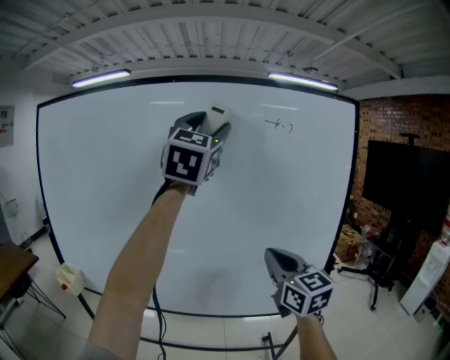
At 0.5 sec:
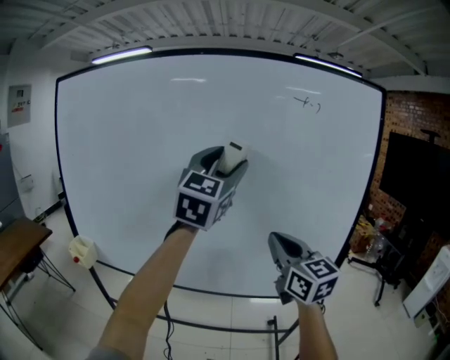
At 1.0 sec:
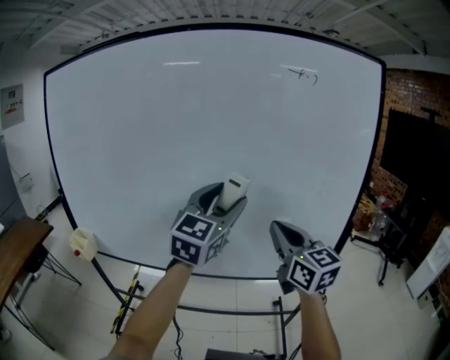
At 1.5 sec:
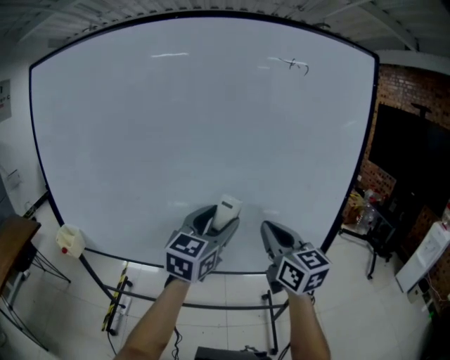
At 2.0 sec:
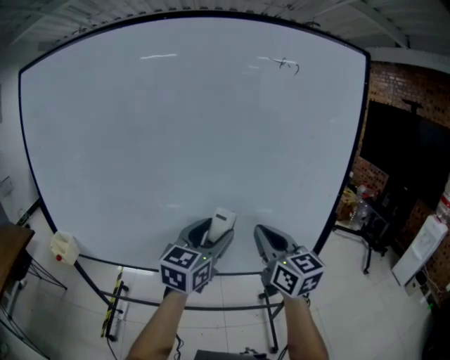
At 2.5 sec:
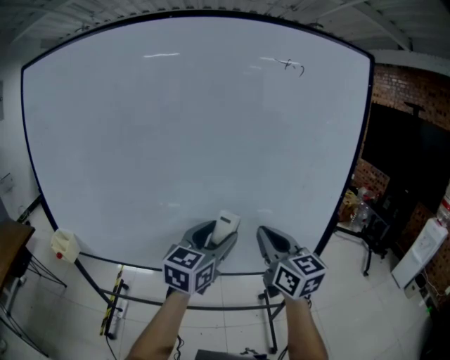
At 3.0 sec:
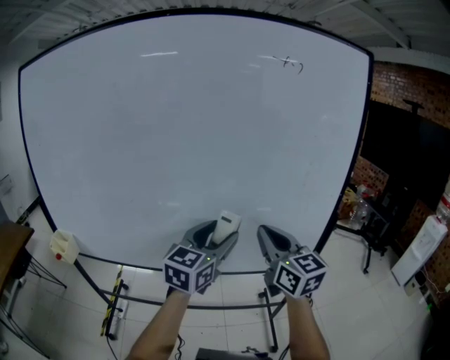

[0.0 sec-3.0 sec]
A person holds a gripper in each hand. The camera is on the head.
0.0 sec to 1.5 sec: The right gripper goes approximately 5 cm downward, while the left gripper moves downward, about 35 cm, and swivels roughly 30 degrees.
1.5 sec to 3.0 sec: The grippers make only small movements.

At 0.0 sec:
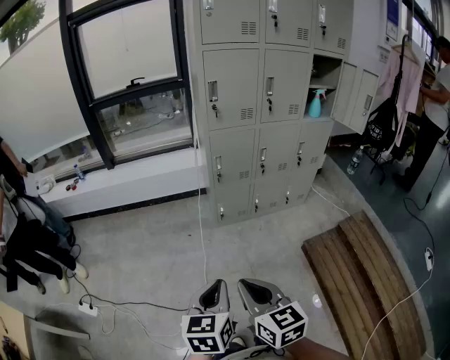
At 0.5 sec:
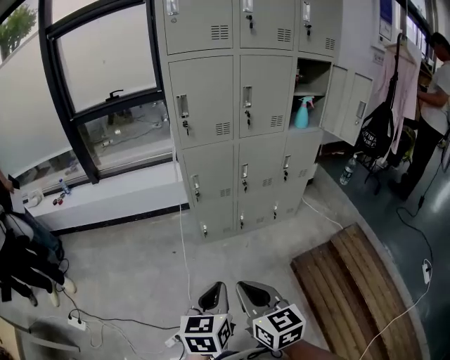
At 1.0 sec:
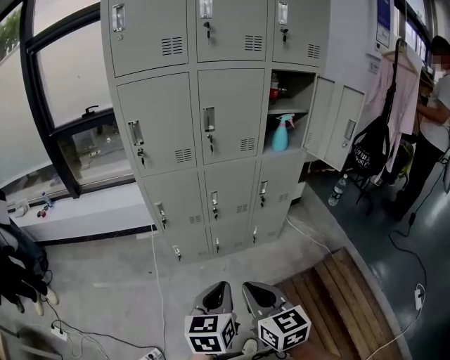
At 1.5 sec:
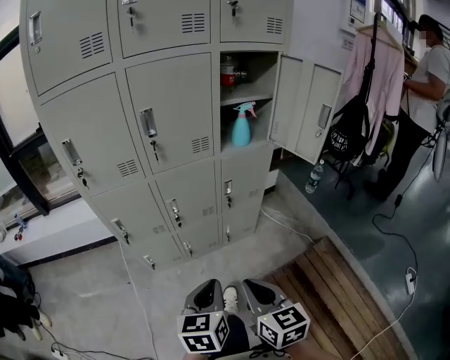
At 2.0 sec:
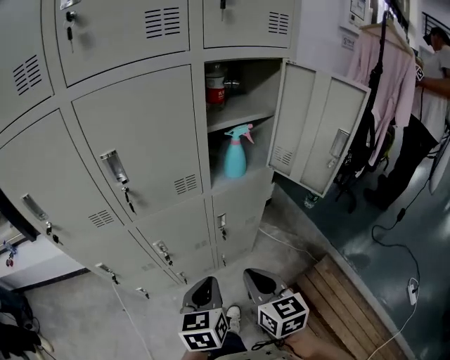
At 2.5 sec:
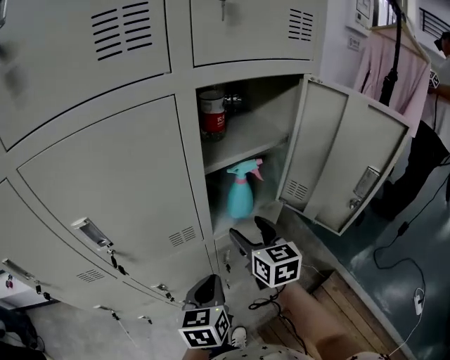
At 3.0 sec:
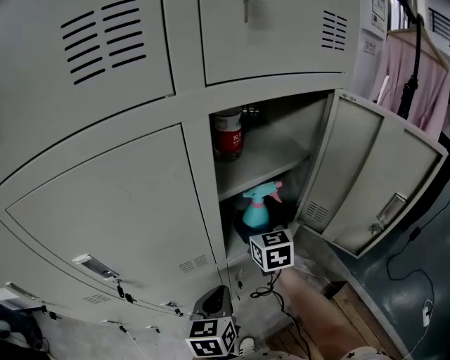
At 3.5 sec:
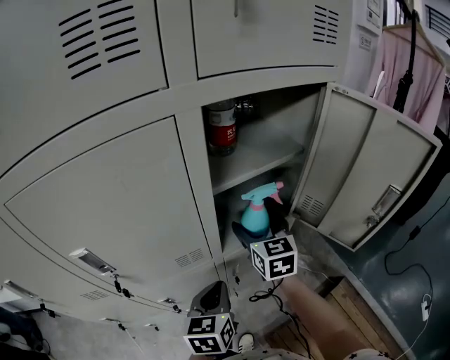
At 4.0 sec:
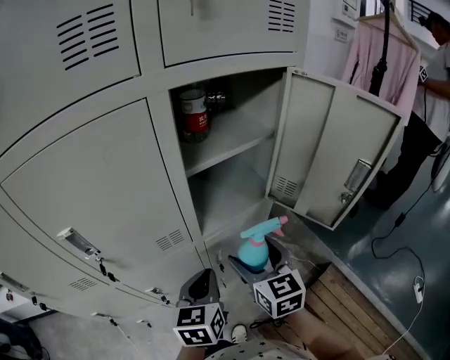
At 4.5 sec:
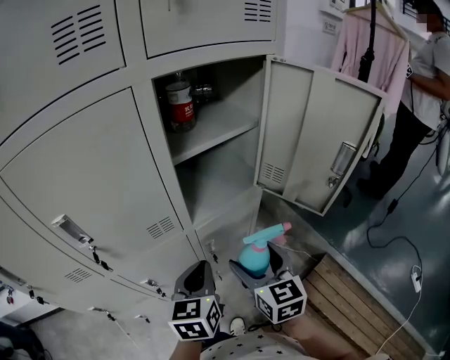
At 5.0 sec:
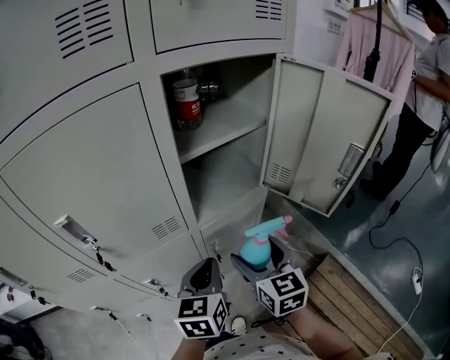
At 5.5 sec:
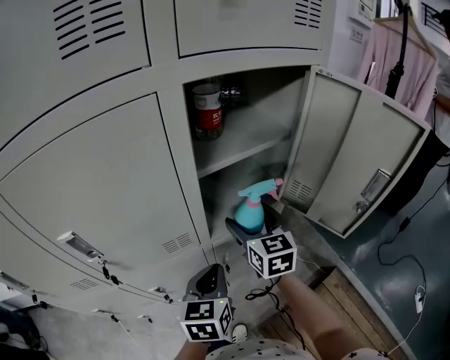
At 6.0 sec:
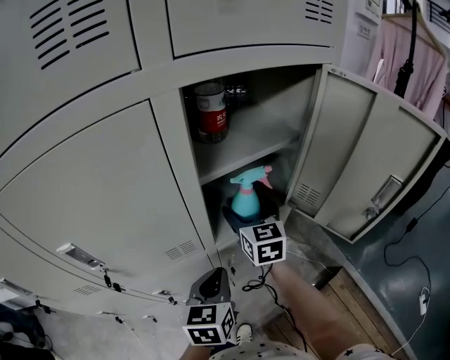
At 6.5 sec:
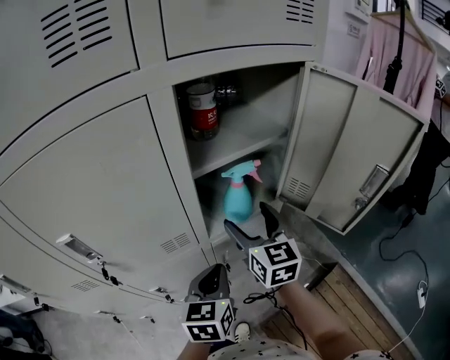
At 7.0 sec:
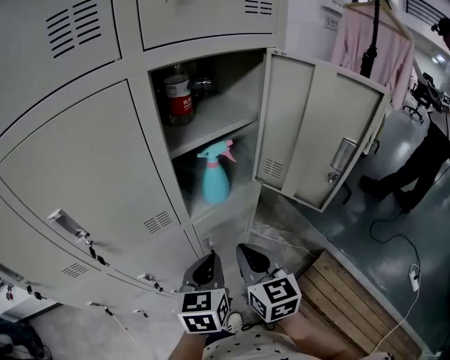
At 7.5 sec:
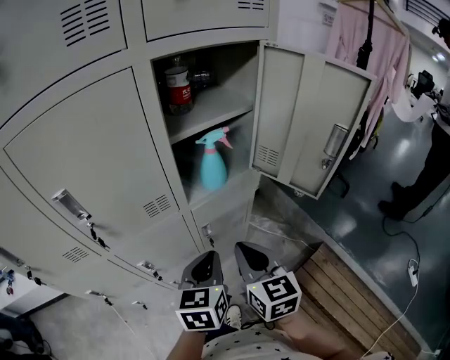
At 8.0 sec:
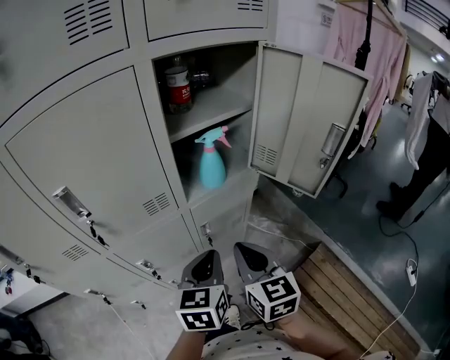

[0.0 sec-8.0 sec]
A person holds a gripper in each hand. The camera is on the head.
0.0 sec to 2.0 sec: Both grippers are carried forward and to the right, roughly 70 cm.
2.0 sec to 4.0 sec: The two grippers go some 20 cm forward. The right gripper opens its fingers.
4.0 sec to 6.0 sec: The right gripper heads forward, covering some 20 cm.
6.0 sec to 8.0 sec: The left gripper travels backward by approximately 10 cm. Meanwhile the right gripper shifts about 30 cm backward, and closes its fingers.

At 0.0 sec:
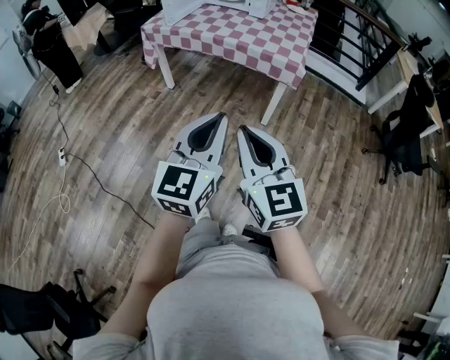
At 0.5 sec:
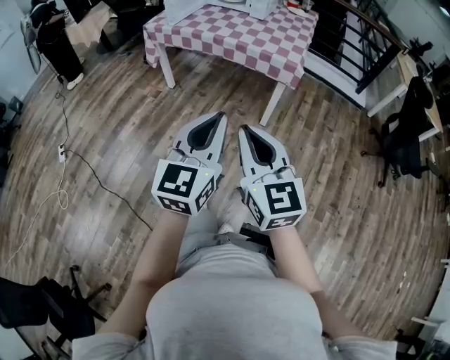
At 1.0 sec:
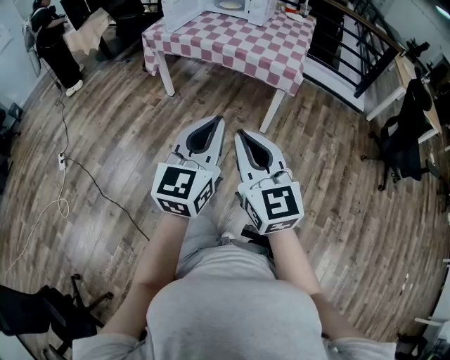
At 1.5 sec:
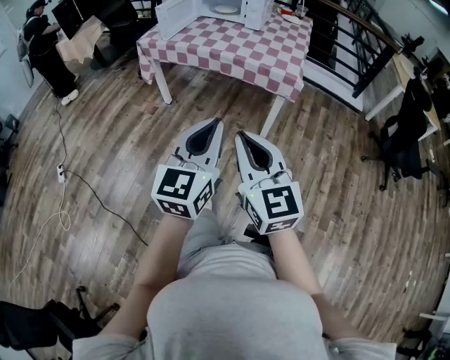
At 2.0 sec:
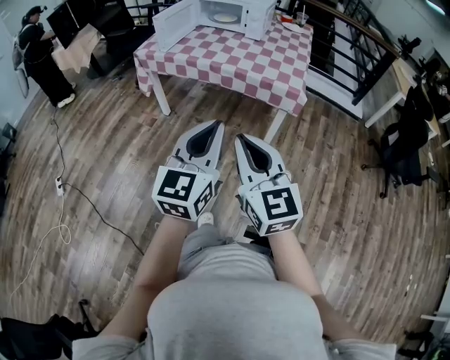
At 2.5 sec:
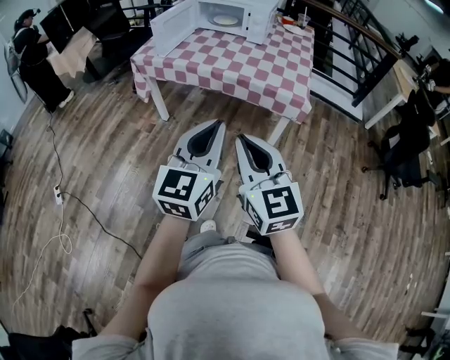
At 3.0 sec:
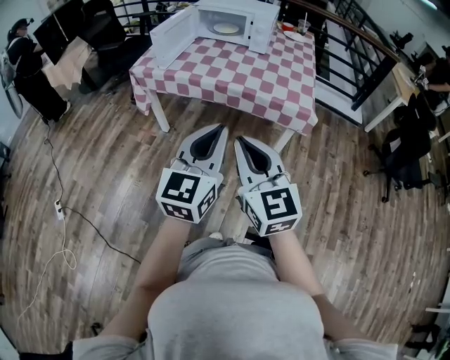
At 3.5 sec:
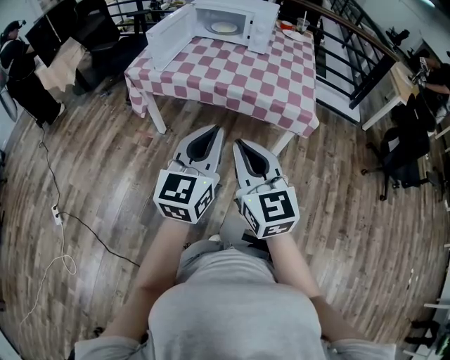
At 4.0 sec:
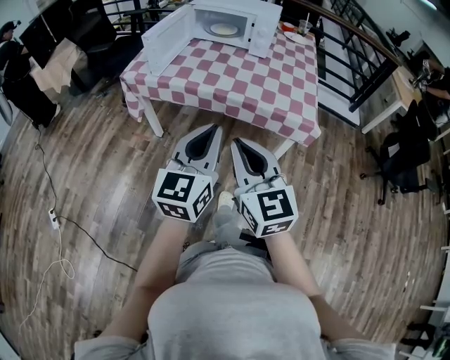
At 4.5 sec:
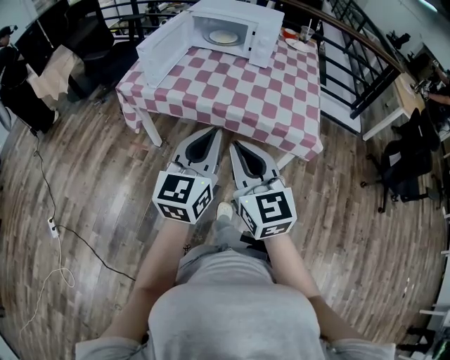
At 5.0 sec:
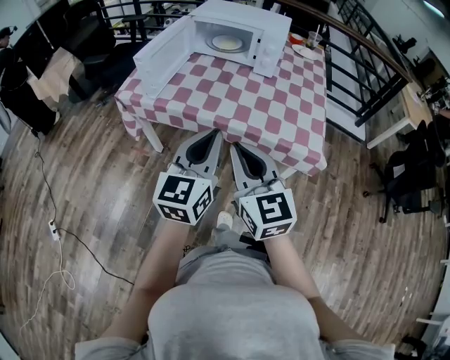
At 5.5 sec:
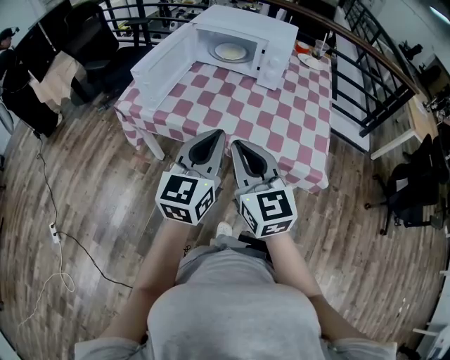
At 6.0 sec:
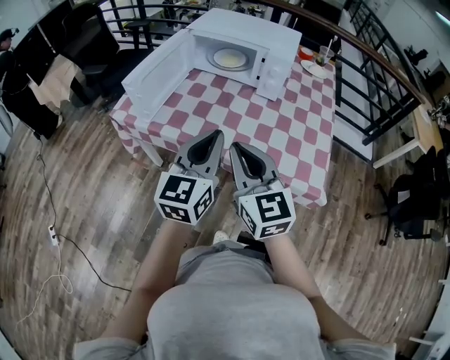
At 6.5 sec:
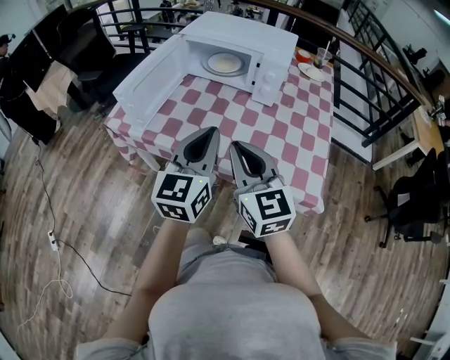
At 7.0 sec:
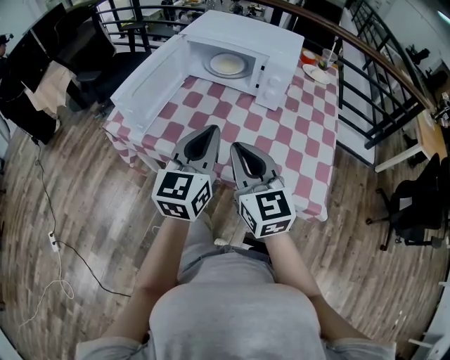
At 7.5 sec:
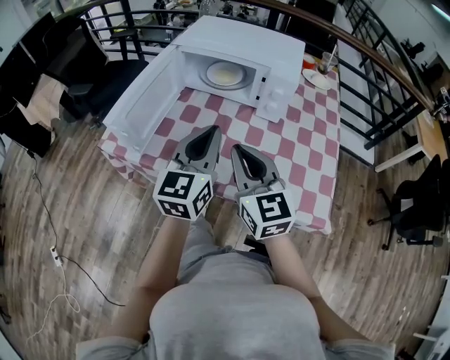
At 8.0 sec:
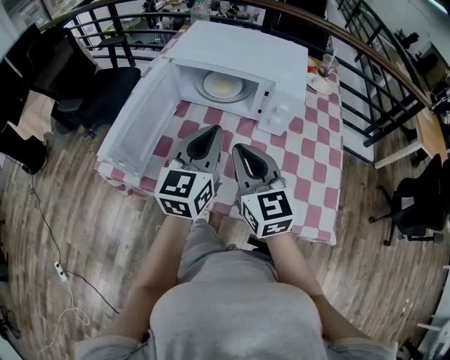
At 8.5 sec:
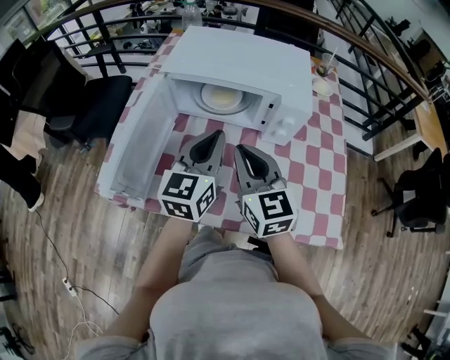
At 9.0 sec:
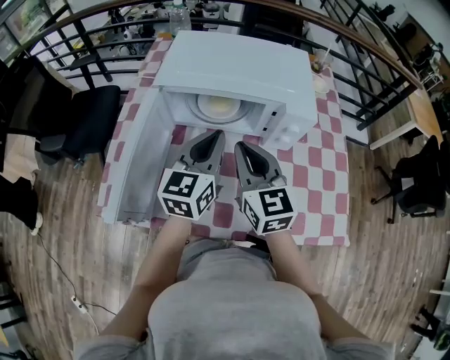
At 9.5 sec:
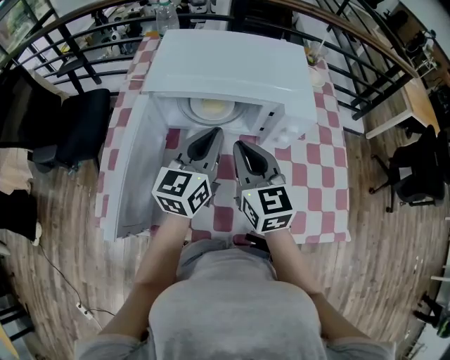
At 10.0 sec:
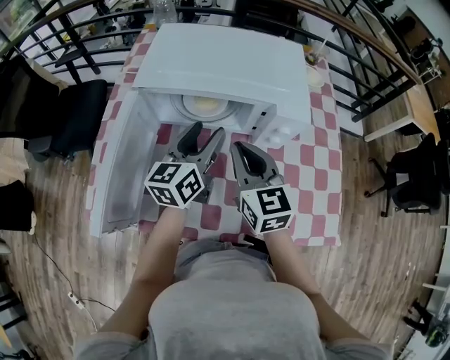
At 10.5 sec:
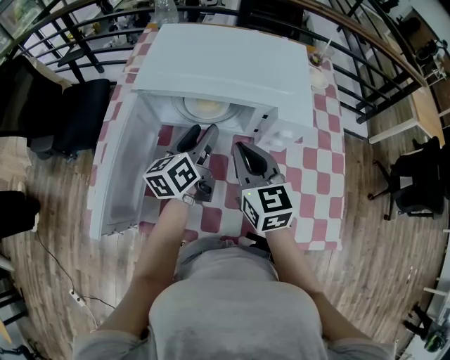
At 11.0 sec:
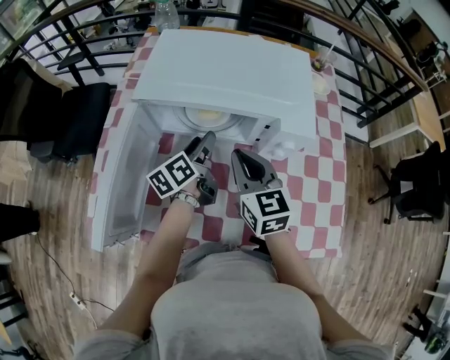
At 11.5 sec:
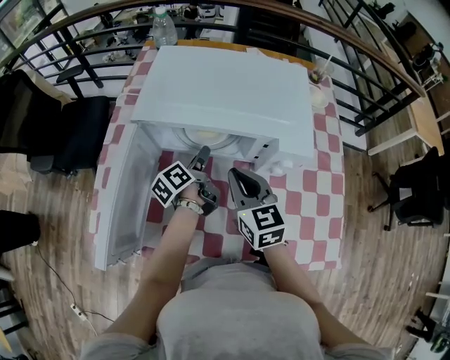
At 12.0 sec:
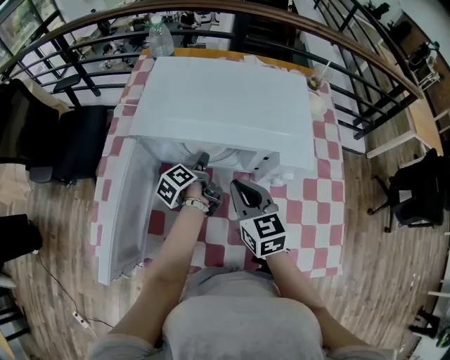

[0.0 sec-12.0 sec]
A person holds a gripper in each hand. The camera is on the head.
0.0 sec to 2.0 sec: Both grippers move forward, some 10 cm.
2.0 sec to 4.0 sec: Both grippers travel together forward and to the left, roughly 25 cm.
4.0 sec to 6.0 sec: The two grippers go about 30 cm forward.
6.0 sec to 8.0 sec: Both grippers move forward, about 25 cm.
8.0 sec to 10.0 sec: The right gripper shifts roughly 15 cm forward, while the left gripper heads forward and downward, covering approximately 15 cm, turns by some 20 degrees, and opens its fingers.
10.0 sec to 12.0 sec: The right gripper travels downward by about 5 cm. Meanwhile the left gripper shifts about 20 cm downward and forward, and twists about 50 degrees counterclockwise, seen from behind.

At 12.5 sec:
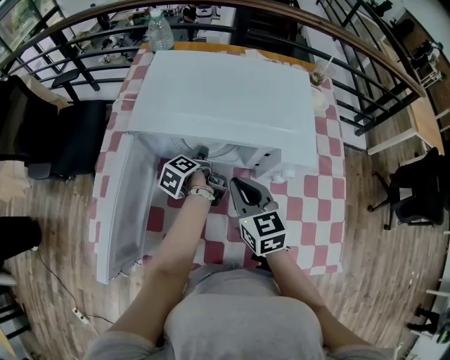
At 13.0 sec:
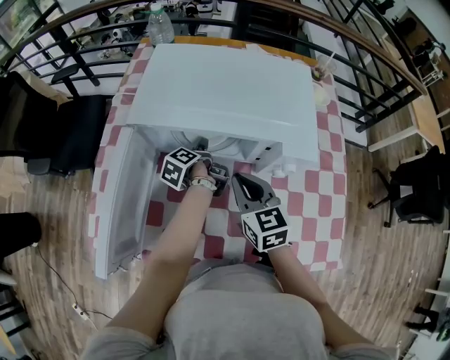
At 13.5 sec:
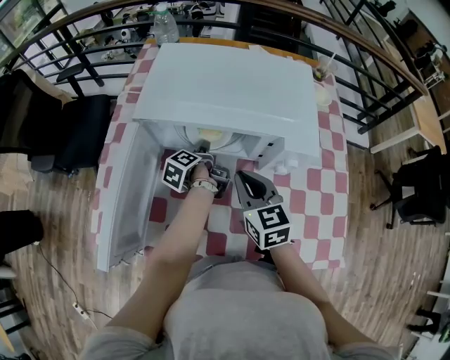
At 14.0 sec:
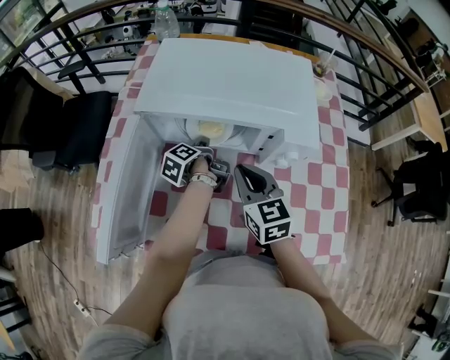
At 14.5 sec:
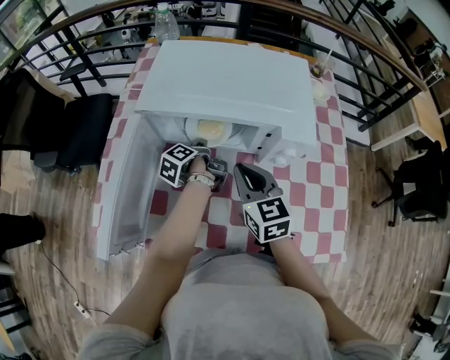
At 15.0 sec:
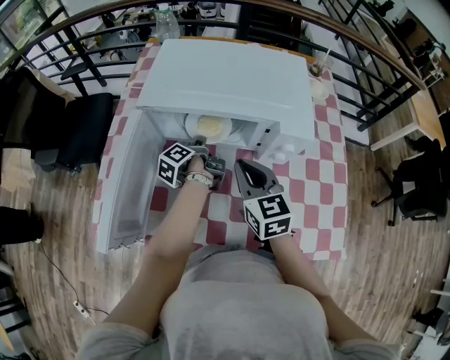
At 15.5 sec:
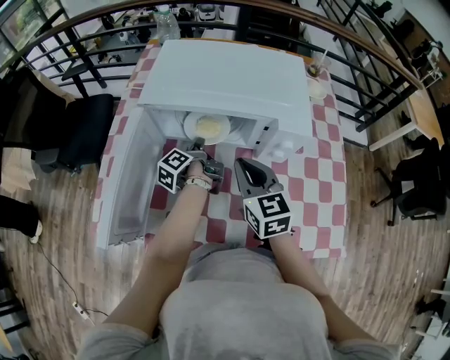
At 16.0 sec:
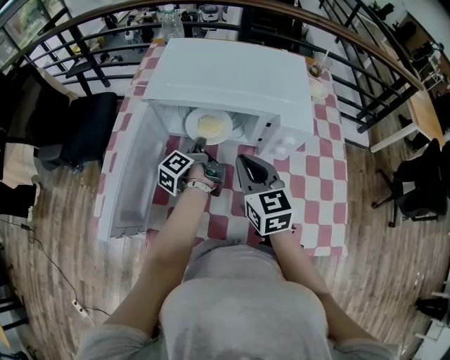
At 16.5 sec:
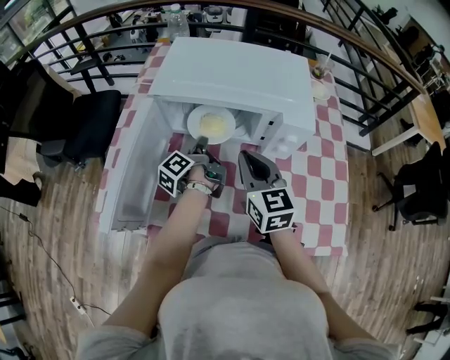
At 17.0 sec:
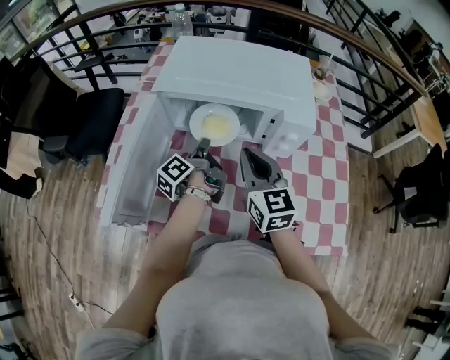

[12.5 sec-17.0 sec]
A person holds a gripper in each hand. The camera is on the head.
12.5 sec to 14.5 sec: The left gripper closes its fingers.
14.5 sec to 17.0 sec: The left gripper is displaced upward and backward by roughly 10 cm, and changes its angle by about 20 degrees.
